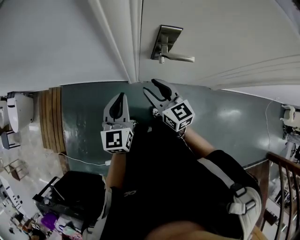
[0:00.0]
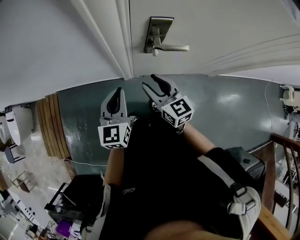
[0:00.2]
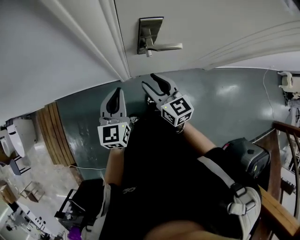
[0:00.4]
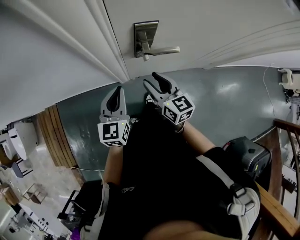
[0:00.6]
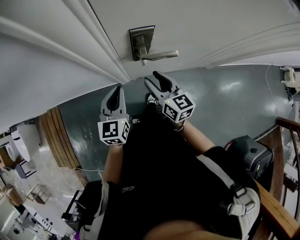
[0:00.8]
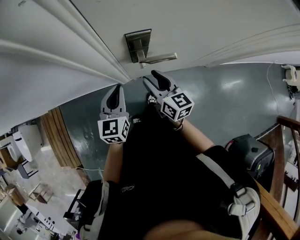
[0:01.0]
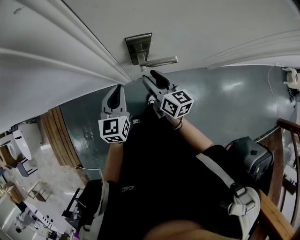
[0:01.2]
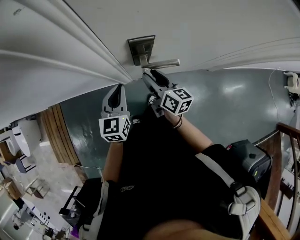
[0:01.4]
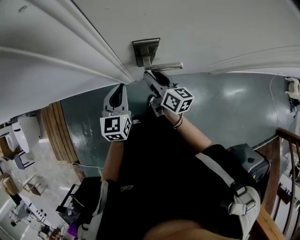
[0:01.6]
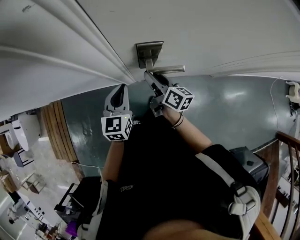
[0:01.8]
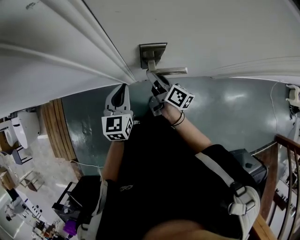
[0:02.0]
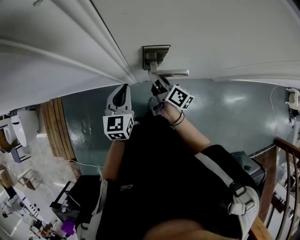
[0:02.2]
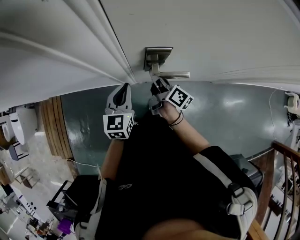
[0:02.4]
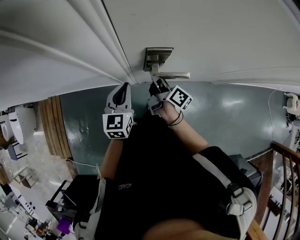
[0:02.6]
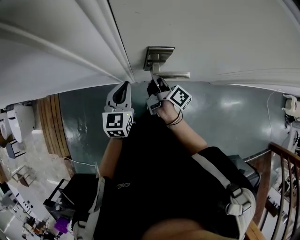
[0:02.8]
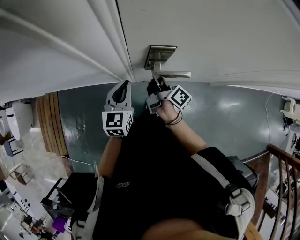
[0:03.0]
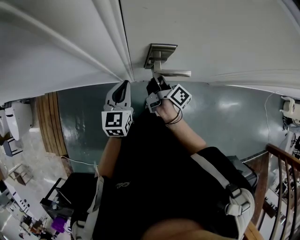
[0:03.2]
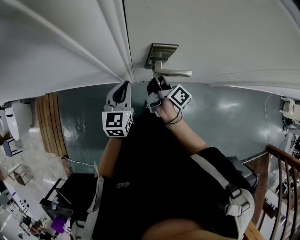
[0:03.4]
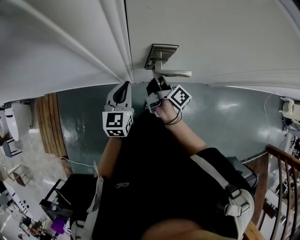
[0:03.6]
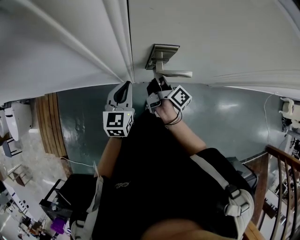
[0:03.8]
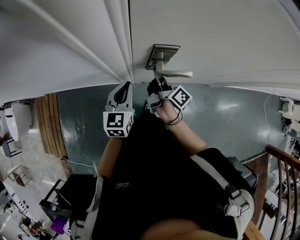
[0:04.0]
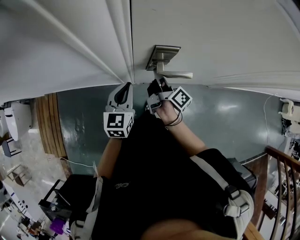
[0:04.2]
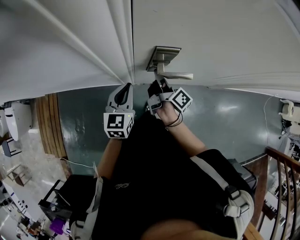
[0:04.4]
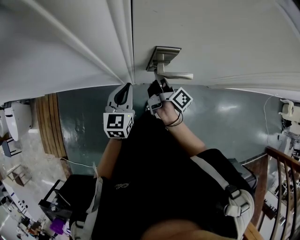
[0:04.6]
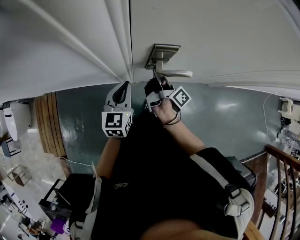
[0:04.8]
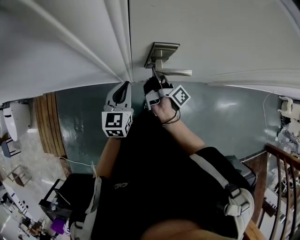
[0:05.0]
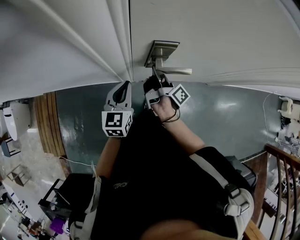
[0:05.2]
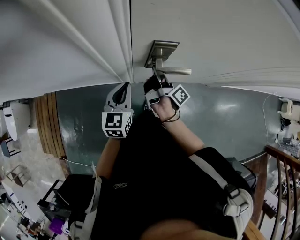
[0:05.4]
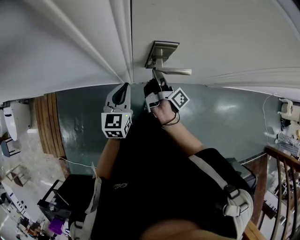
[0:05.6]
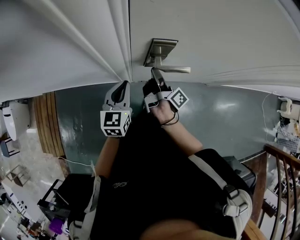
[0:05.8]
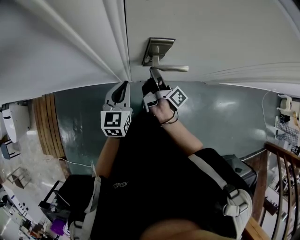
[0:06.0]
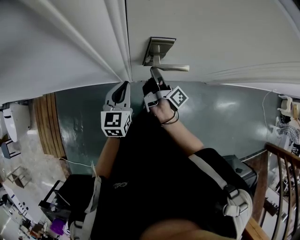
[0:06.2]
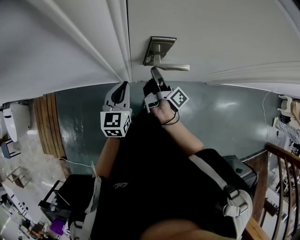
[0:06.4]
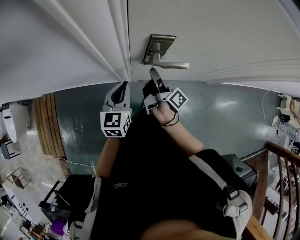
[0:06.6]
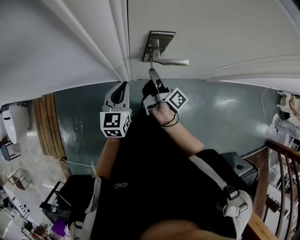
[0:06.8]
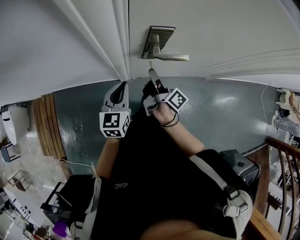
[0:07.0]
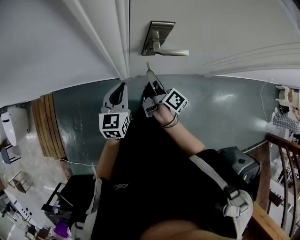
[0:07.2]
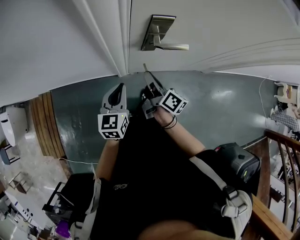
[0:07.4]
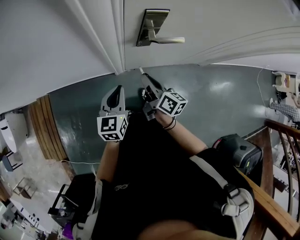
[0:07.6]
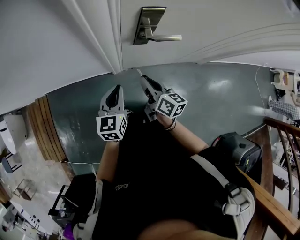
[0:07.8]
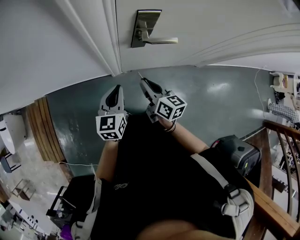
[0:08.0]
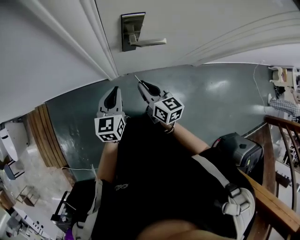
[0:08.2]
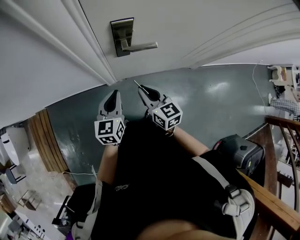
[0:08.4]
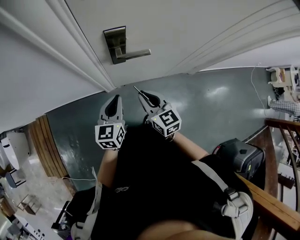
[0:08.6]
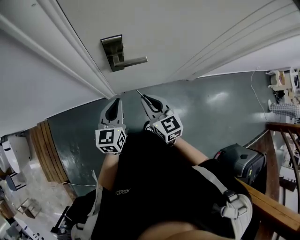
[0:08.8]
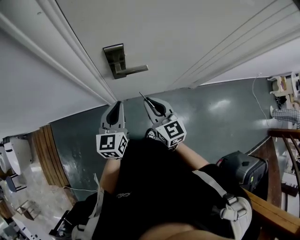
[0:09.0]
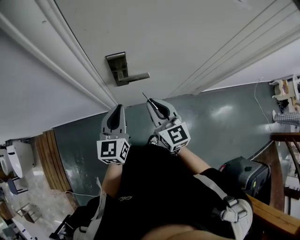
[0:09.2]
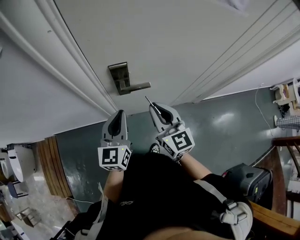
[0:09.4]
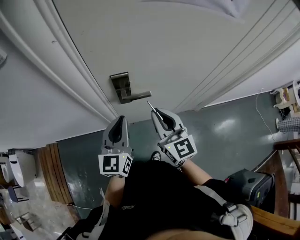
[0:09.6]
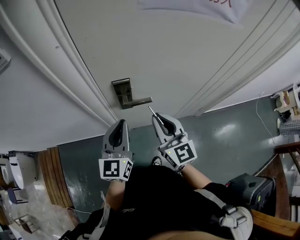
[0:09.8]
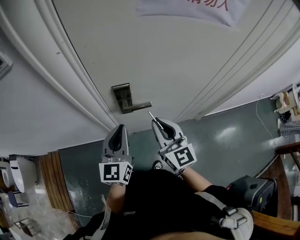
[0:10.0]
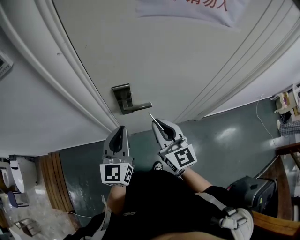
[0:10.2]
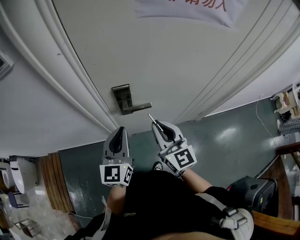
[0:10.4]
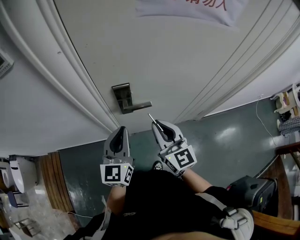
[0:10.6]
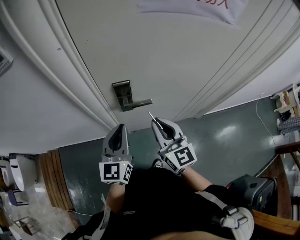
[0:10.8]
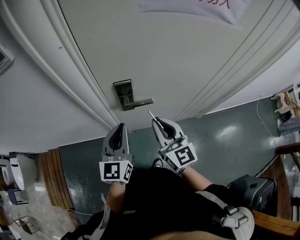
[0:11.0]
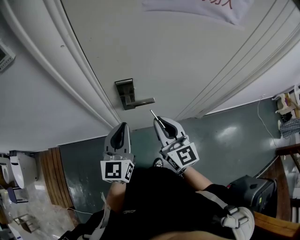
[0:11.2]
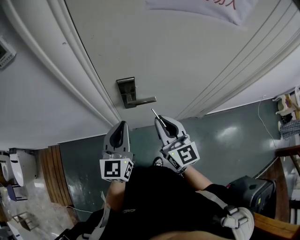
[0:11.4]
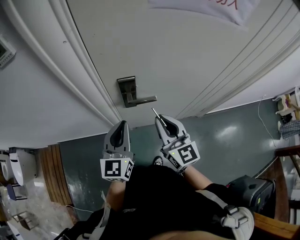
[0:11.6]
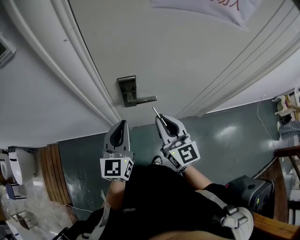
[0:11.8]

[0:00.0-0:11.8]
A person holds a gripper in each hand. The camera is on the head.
0.0 to 1.4 s: Both grippers travel together forward, to the right and downward, approximately 15 cm. The right gripper turns by some 40 degrees.
1.4 to 3.0 s: The right gripper rotates about 40 degrees, and closes.
3.0 to 4.4 s: There are only small adjustments of the grippers.
4.4 to 6.0 s: The grippers make only small movements.
6.0 to 7.4 s: The grippers both shift backward by about 10 cm. The right gripper changes its angle by some 30 degrees.
7.4 to 8.8 s: The left gripper goes roughly 10 cm to the right, while the right gripper shifts approximately 15 cm to the right, backward and upward, and twists approximately 60 degrees counterclockwise, seen from behind.
8.8 to 10.4 s: Both grippers travel together upward, roughly 15 cm.
10.4 to 11.8 s: The two grippers keep their place.

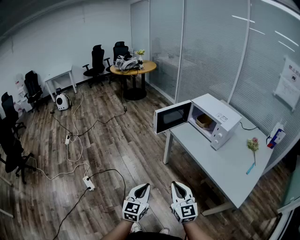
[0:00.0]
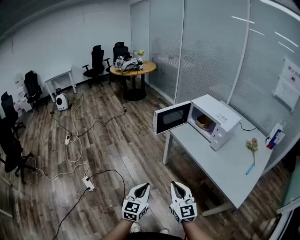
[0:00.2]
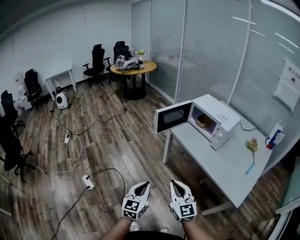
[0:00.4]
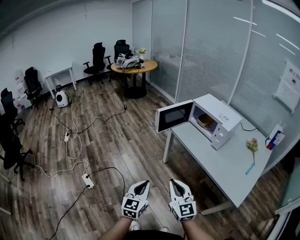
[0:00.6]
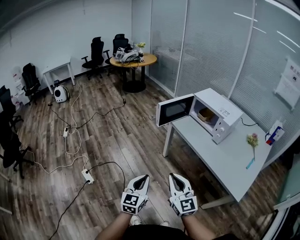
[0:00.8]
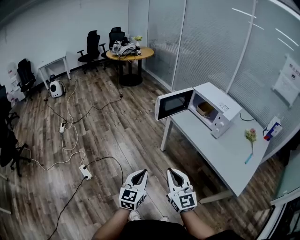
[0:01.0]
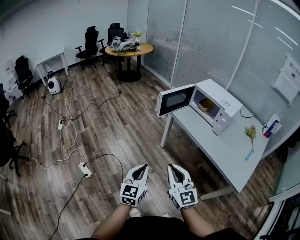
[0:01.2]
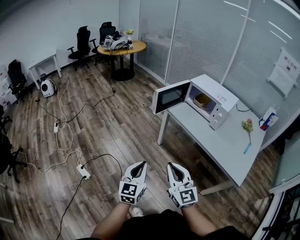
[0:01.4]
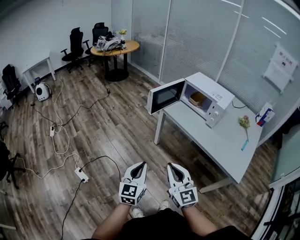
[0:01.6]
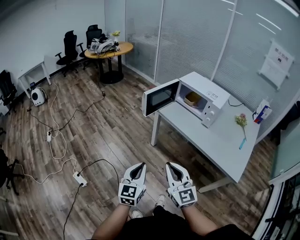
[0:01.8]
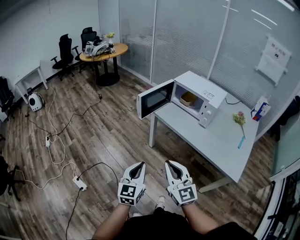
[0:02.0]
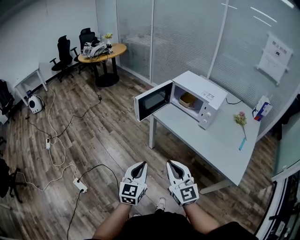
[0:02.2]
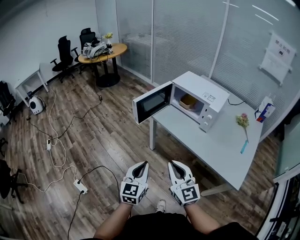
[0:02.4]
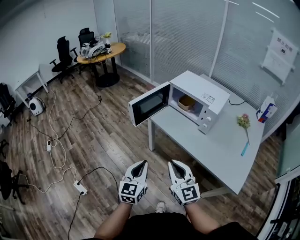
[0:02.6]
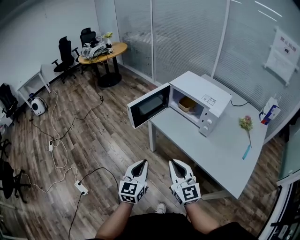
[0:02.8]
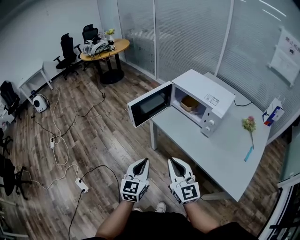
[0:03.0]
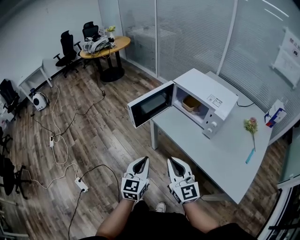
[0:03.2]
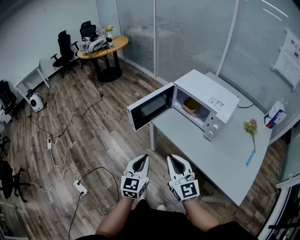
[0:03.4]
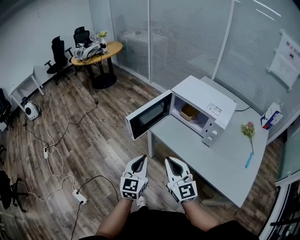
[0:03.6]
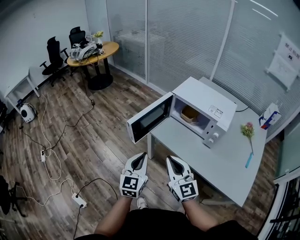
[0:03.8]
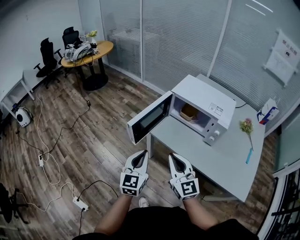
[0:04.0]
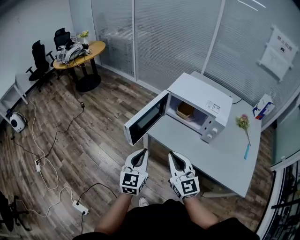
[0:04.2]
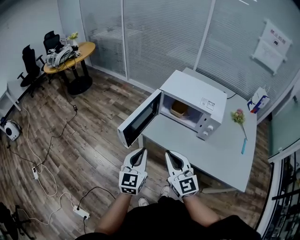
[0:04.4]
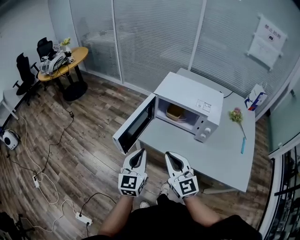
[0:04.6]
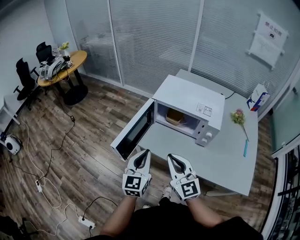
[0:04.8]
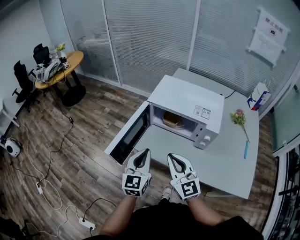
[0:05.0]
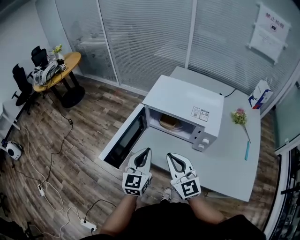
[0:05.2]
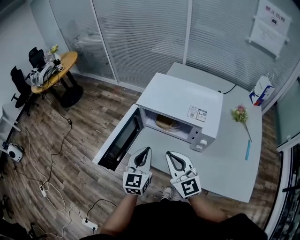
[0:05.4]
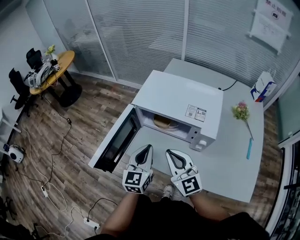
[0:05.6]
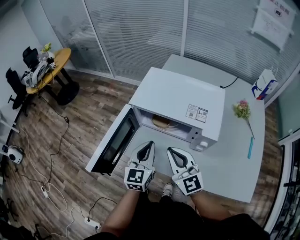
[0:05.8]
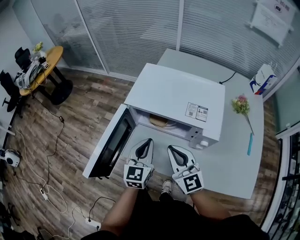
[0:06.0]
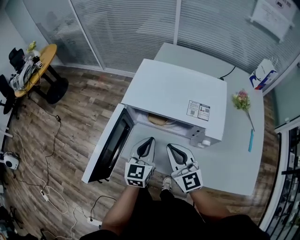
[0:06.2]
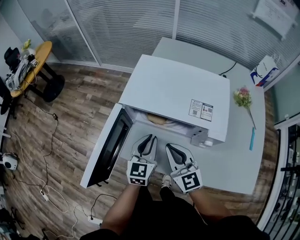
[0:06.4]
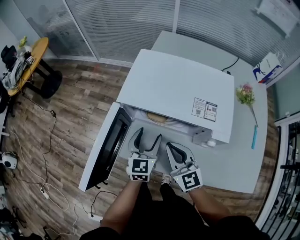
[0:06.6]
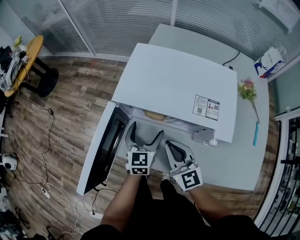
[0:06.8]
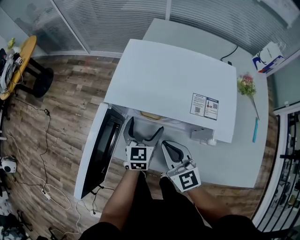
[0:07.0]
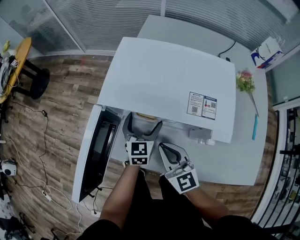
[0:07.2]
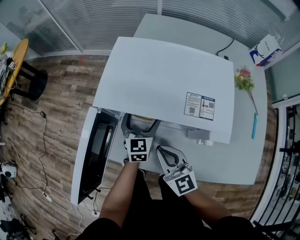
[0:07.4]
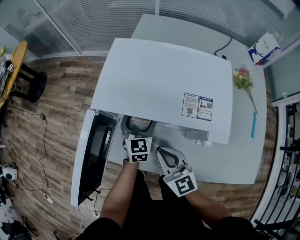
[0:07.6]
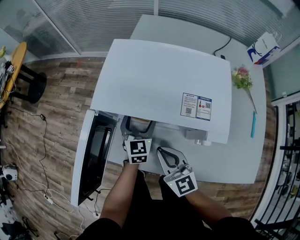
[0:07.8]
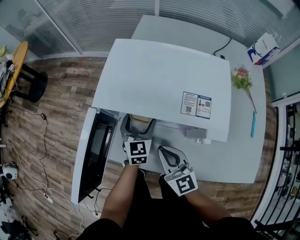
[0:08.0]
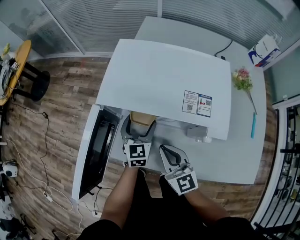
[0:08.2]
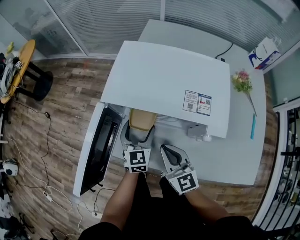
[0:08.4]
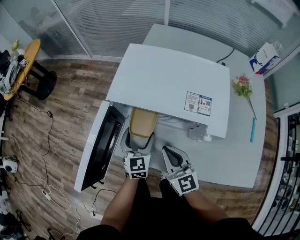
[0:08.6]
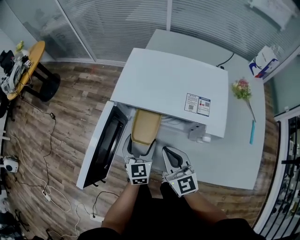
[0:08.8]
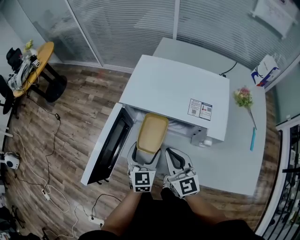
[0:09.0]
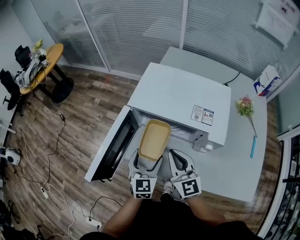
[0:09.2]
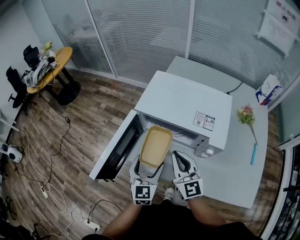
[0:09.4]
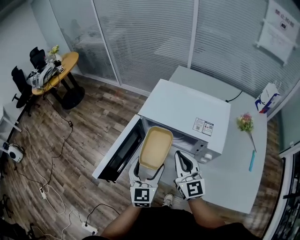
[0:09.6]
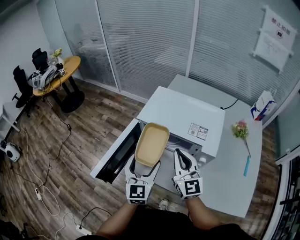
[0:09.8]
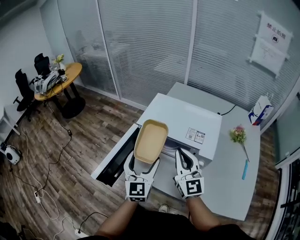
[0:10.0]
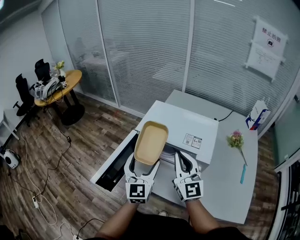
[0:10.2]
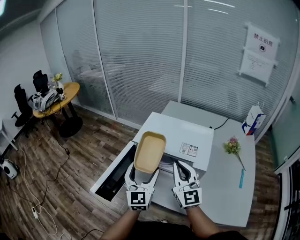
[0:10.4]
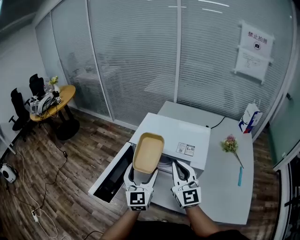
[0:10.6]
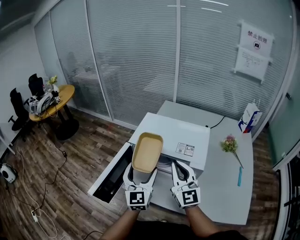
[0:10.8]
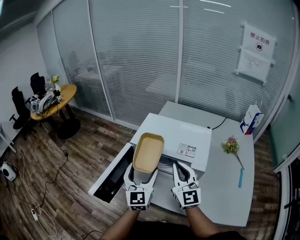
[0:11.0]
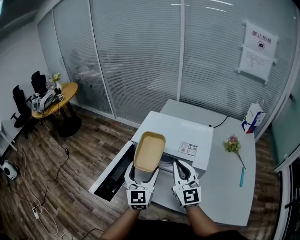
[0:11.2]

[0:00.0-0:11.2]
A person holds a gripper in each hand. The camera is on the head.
0.0 to 1.6 s: Both grippers travel together to the left, approximately 10 cm.
1.6 to 3.2 s: Both grippers move forward and to the right, some 25 cm.
3.2 to 4.8 s: The grippers both shift forward by approximately 20 cm.
4.8 to 6.4 s: The left gripper goes about 25 cm forward, to the right and downward, while the right gripper goes about 20 cm forward, downward and to the right.
6.4 to 8.0 s: The left gripper shifts roughly 15 cm forward and downward, and opens up. The right gripper heads downward, covering approximately 5 cm.
8.0 to 9.6 s: The left gripper heads backward, upward and to the left, covering roughly 25 cm. The right gripper heads upward, covering roughly 15 cm.
9.6 to 11.2 s: Both grippers travel together upward, about 10 cm.

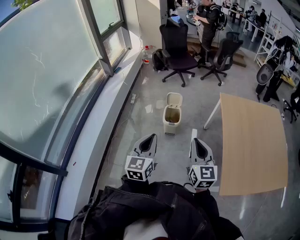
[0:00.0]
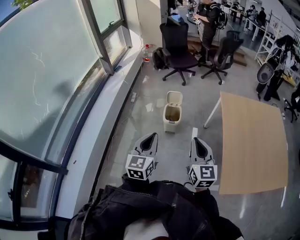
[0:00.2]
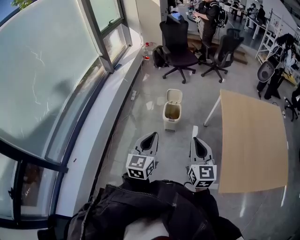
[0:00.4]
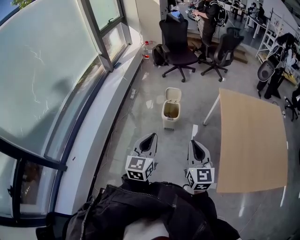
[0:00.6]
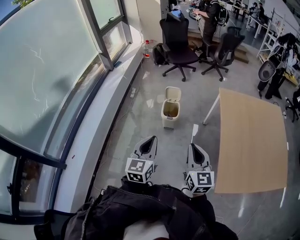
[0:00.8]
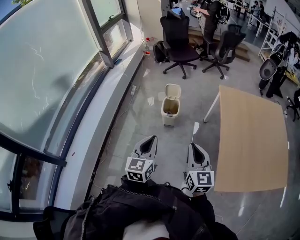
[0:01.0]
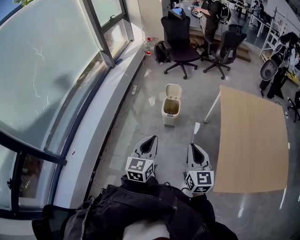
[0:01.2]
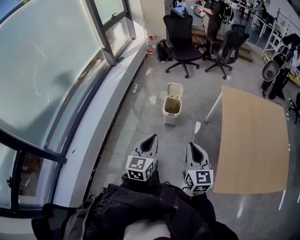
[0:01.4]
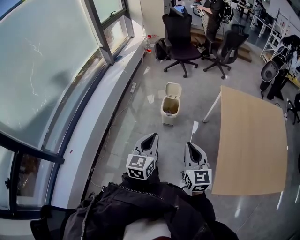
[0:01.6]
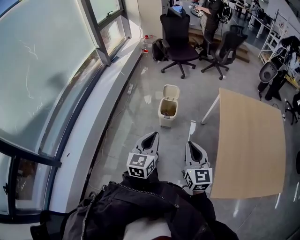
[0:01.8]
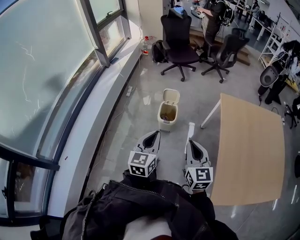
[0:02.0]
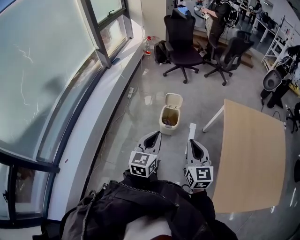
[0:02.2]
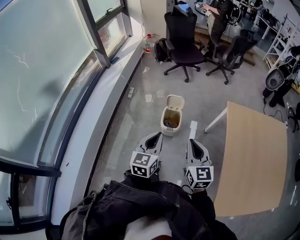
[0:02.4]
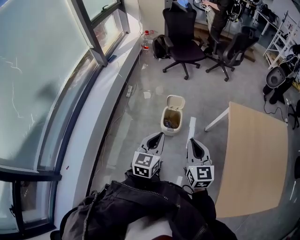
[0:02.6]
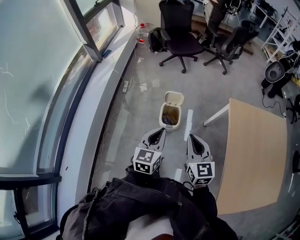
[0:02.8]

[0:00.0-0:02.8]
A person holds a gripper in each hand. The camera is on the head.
0.0 to 1.4 s: The right gripper ends up approximately 5 cm from where it was. The left gripper shifts roughly 5 cm to the right.
1.4 to 2.8 s: Both grippers move forward, some 35 cm.
